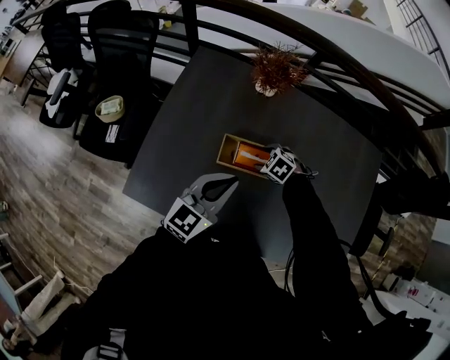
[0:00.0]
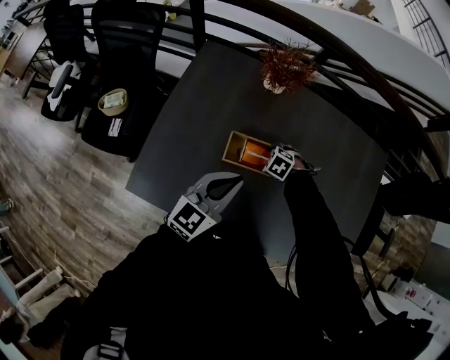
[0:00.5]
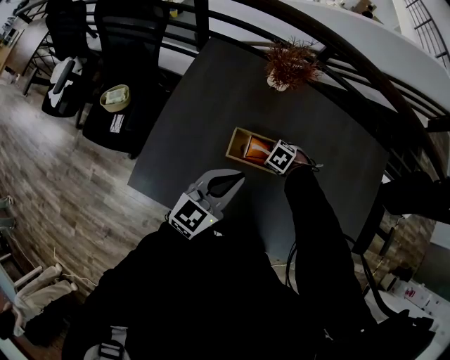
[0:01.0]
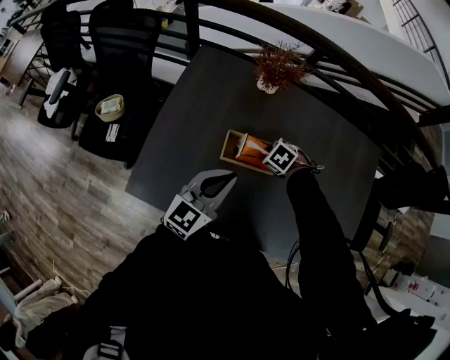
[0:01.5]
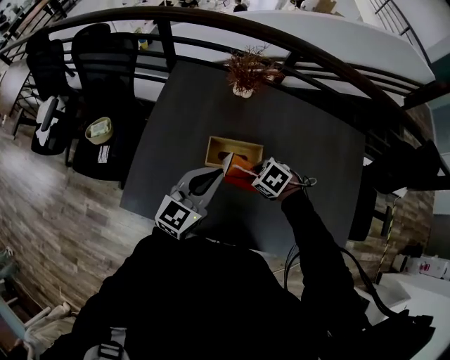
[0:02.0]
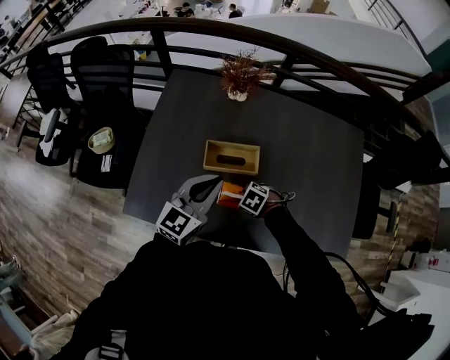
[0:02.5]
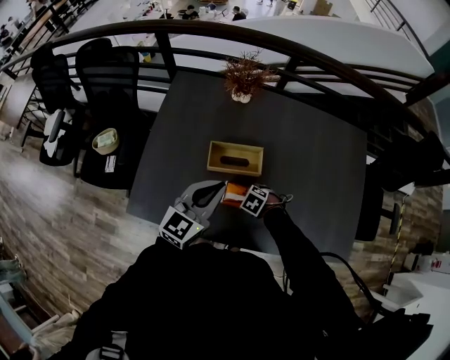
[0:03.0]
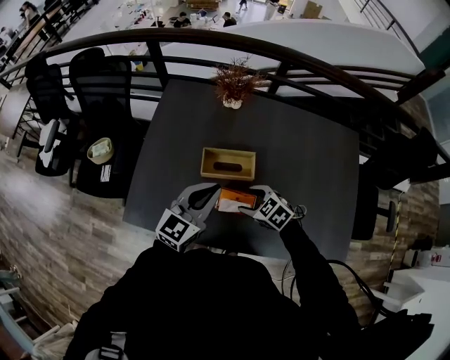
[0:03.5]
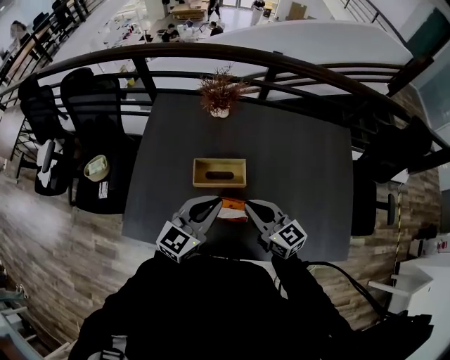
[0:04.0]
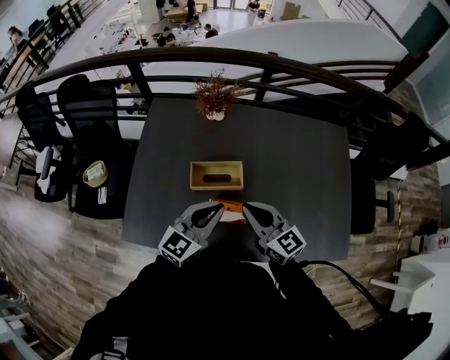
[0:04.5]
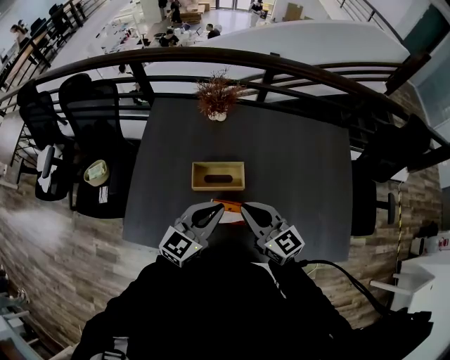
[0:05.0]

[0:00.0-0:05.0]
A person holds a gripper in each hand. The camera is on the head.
0:00.0 to 0:02.5: The right gripper moves some 10 cm upward and comes back, and closes.
0:02.5 to 0:05.0: The left gripper changes place by approximately 5 cm; the right gripper moves upward, roughly 25 cm, points its fingers about 70 degrees further upward, and closes.

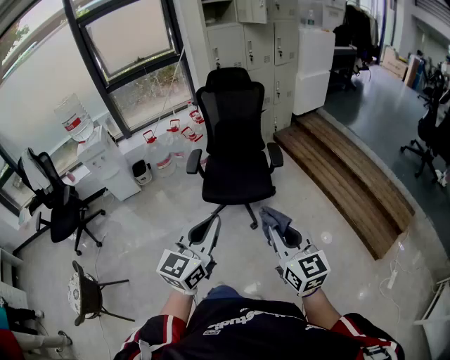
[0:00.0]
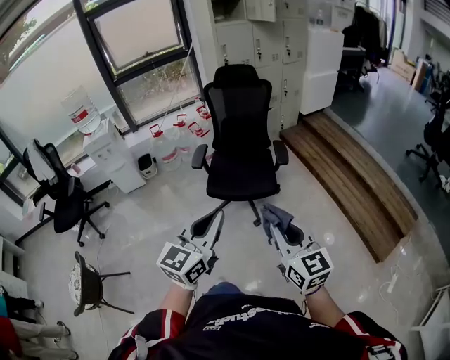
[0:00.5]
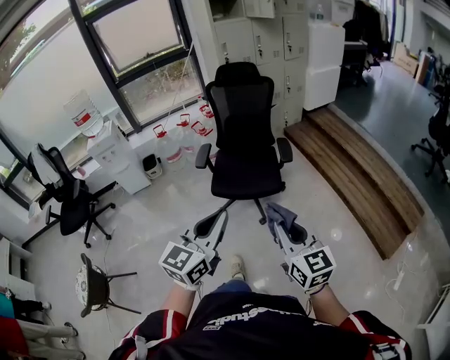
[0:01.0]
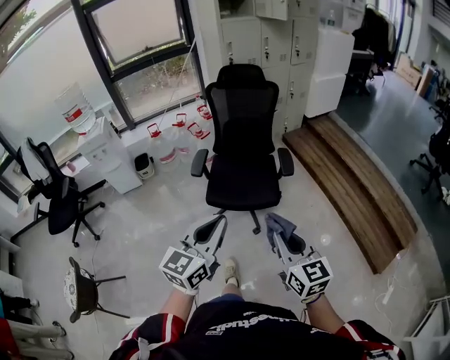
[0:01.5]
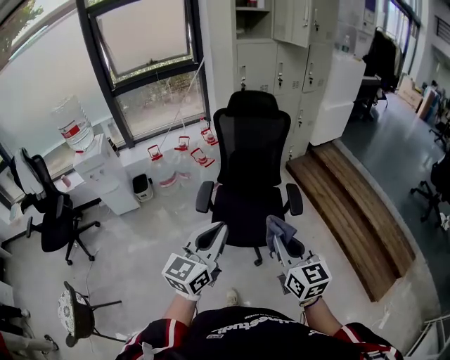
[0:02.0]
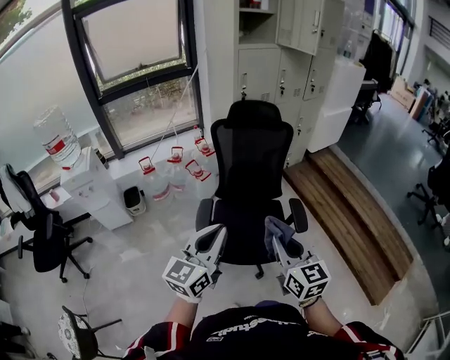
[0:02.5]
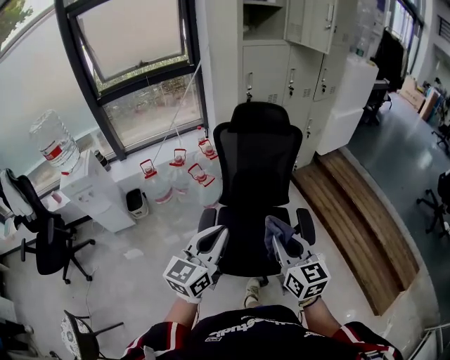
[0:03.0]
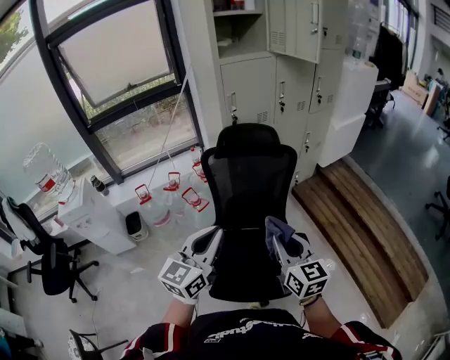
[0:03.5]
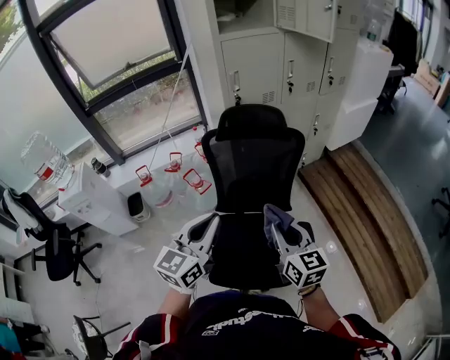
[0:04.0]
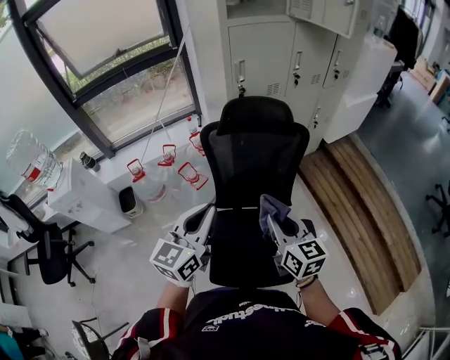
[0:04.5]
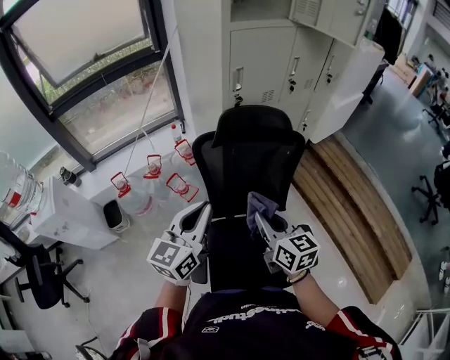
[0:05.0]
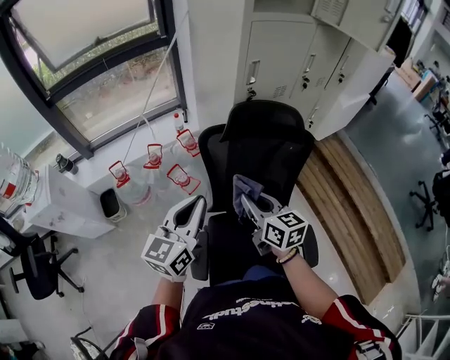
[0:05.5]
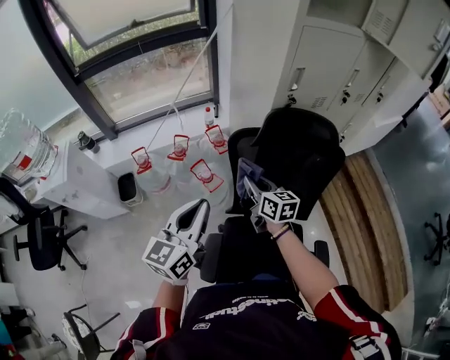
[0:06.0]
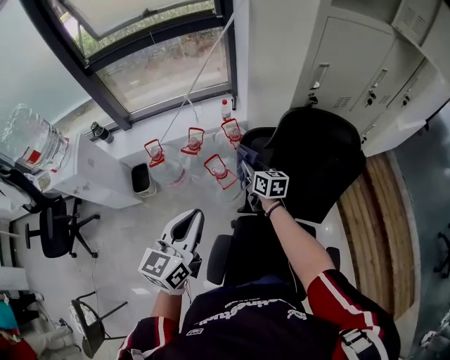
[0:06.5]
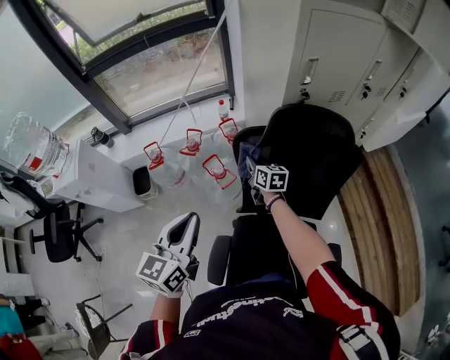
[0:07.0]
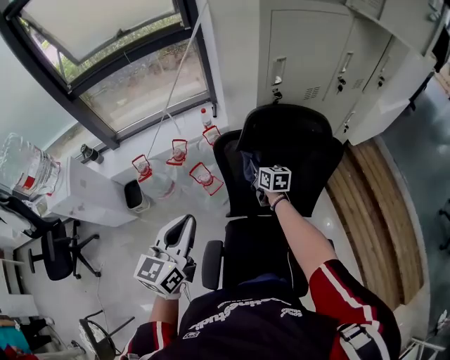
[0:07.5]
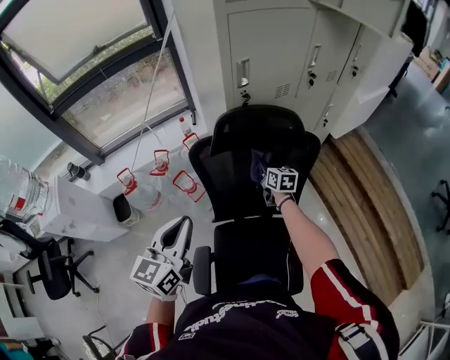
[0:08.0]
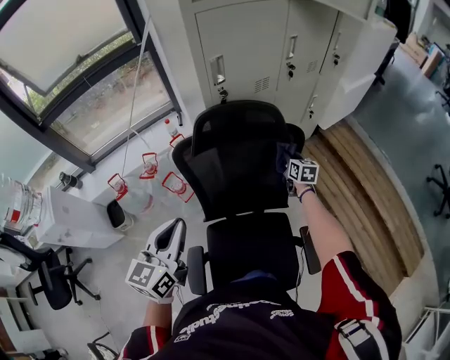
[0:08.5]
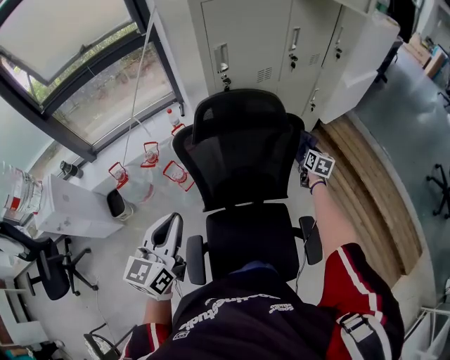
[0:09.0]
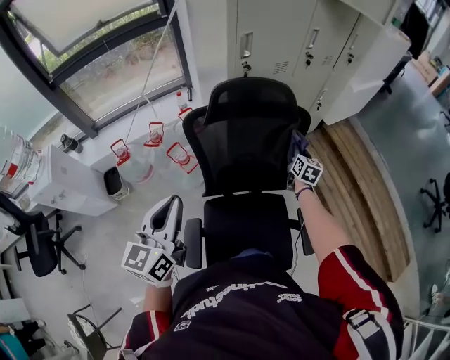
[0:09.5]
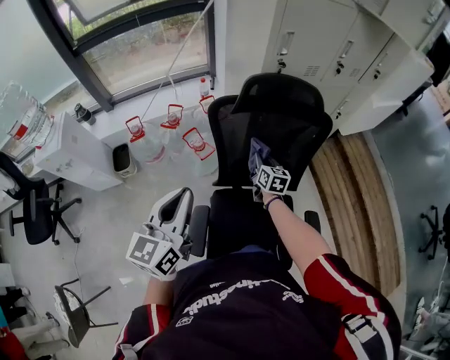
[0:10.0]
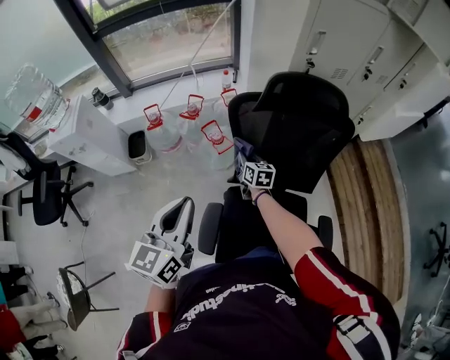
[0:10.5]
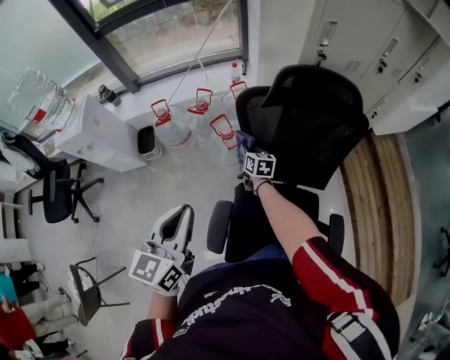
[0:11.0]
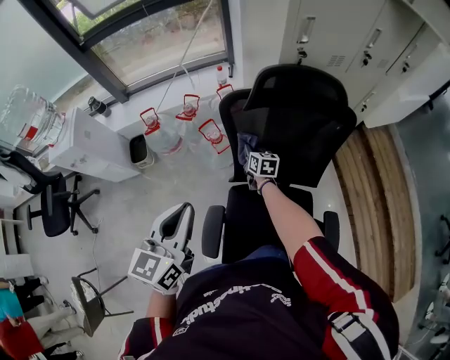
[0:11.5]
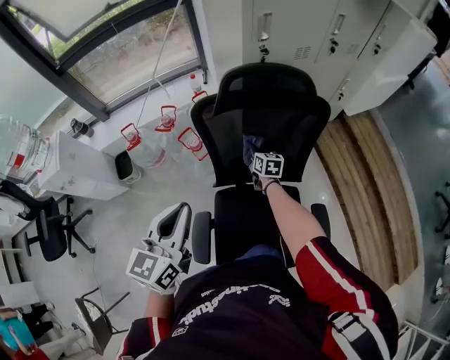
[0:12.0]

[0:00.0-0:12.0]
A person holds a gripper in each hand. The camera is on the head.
0:00.0 to 0:02.0: The two grippers go some 30 cm forward.
0:02.0 to 0:04.0: The two grippers travel together, forward, roughly 50 cm.
0:04.0 to 0:06.0: Both grippers move forward and to the left, some 35 cm.
0:06.0 to 0:08.0: The left gripper heads to the right, covering some 10 cm. The right gripper shifts approximately 25 cm to the right, downward and forward.
0:08.0 to 0:10.0: The grippers both shift backward by approximately 15 cm. The right gripper goes to the right and returns, approximately 25 cm each way.
0:10.0 to 0:12.0: The left gripper moves approximately 5 cm. The right gripper heads downward and forward, covering about 10 cm, and travels to the left and back again, some 15 cm each way.

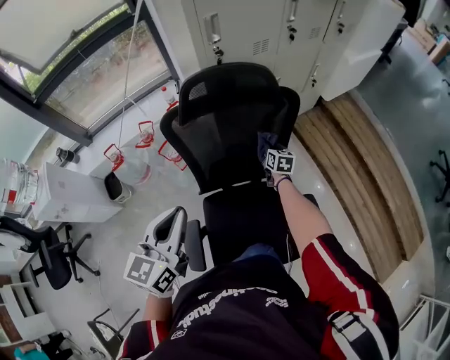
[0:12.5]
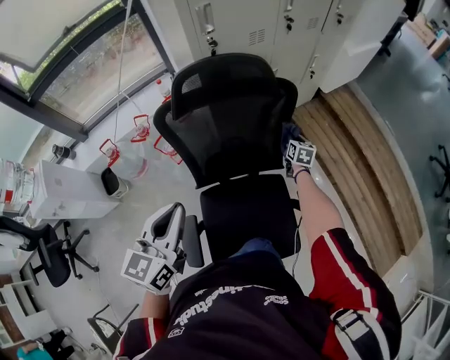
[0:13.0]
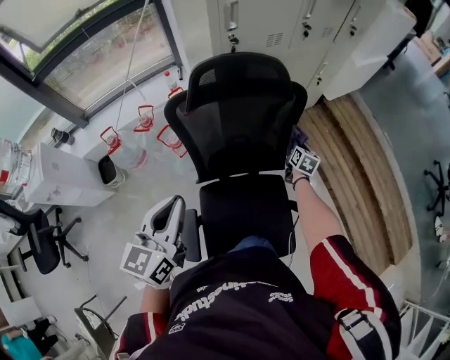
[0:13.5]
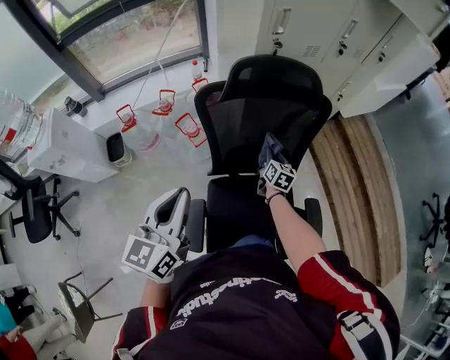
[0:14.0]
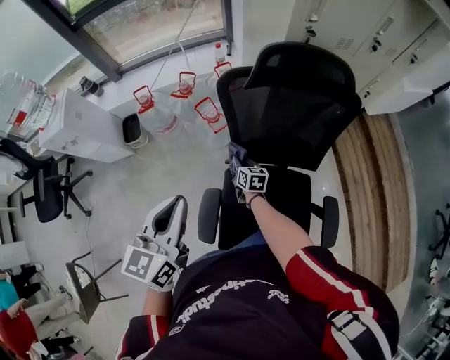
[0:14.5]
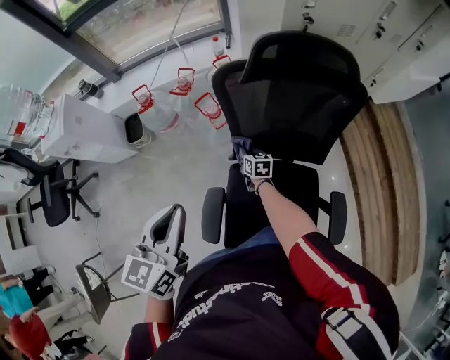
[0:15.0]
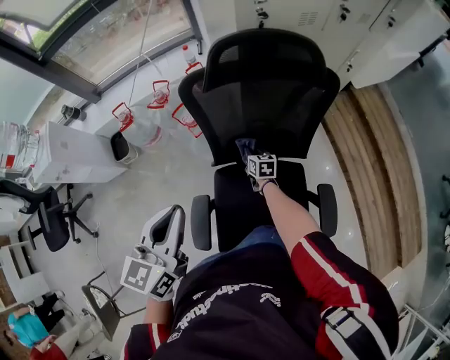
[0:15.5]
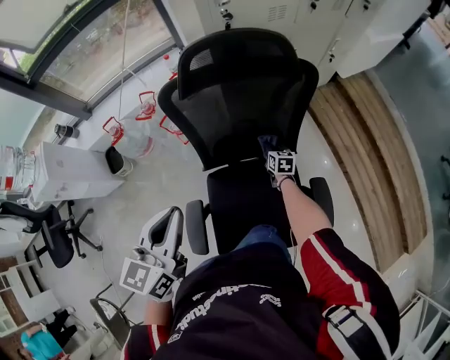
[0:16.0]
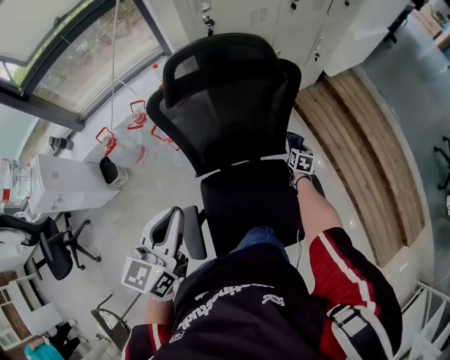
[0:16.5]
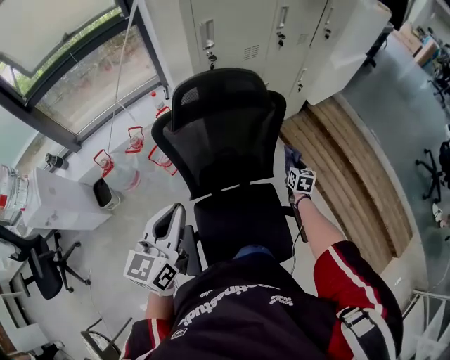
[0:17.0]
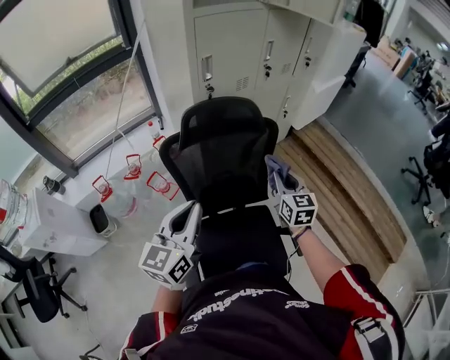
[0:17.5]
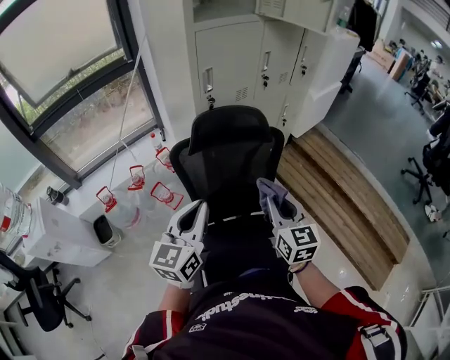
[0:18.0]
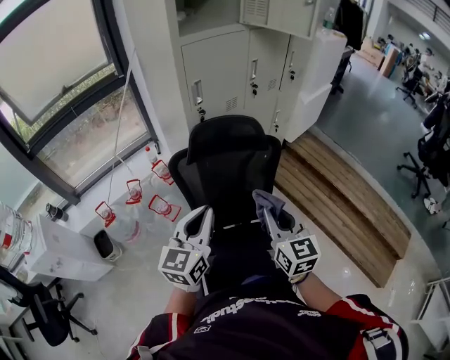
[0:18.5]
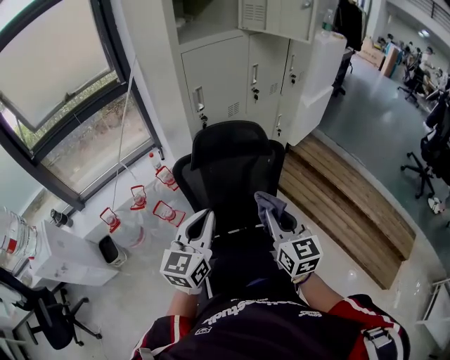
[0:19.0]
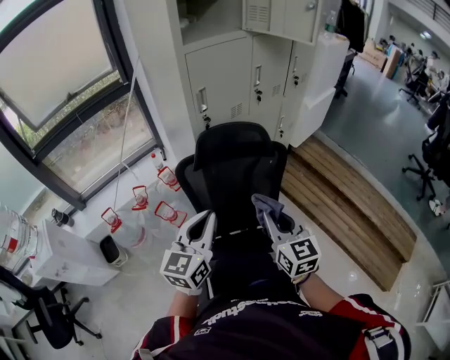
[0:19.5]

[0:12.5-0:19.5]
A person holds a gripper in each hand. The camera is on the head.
0:12.5 to 0:14.5: The left gripper ends up approximately 15 cm from where it was; the right gripper moves some 35 cm, and changes its angle by some 20 degrees.
0:14.5 to 0:16.0: The left gripper is displaced to the right by about 10 cm, while the right gripper shifts about 30 cm to the right, and turns by about 20 degrees.
0:16.0 to 0:17.5: The right gripper is displaced upward by approximately 40 cm, and turns by approximately 30 degrees. Meanwhile the left gripper moves upward, roughly 10 cm.
0:17.5 to 0:19.5: The right gripper goes about 15 cm backward, upward and to the left.

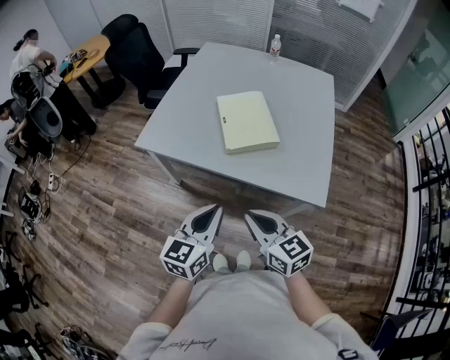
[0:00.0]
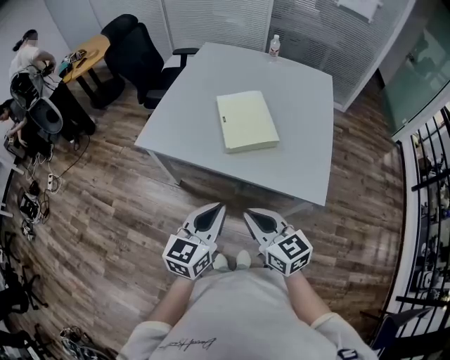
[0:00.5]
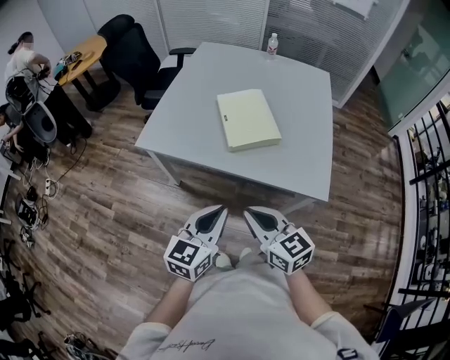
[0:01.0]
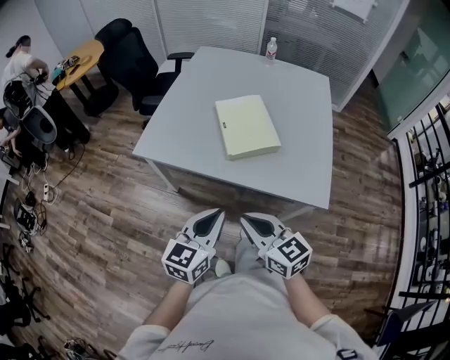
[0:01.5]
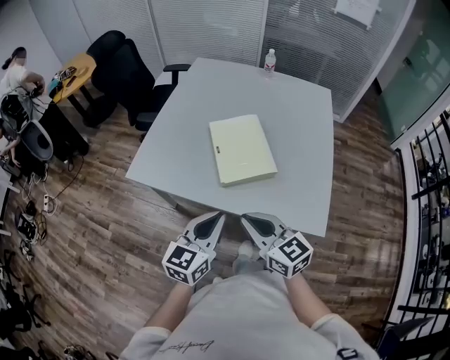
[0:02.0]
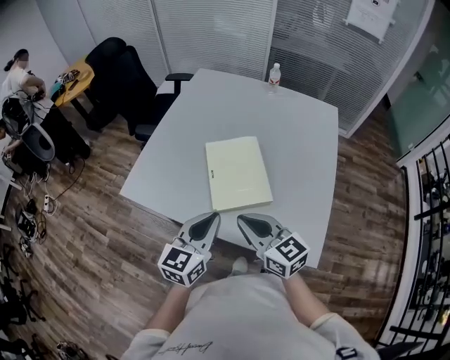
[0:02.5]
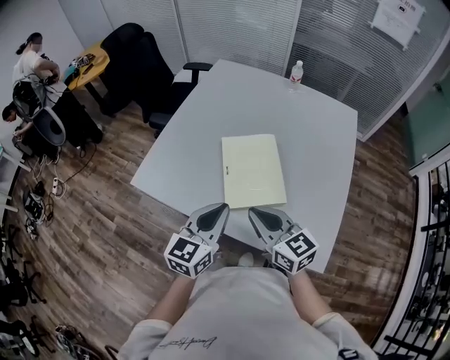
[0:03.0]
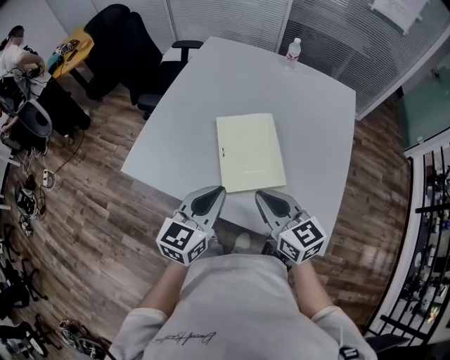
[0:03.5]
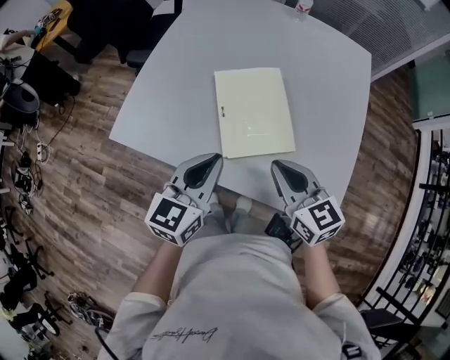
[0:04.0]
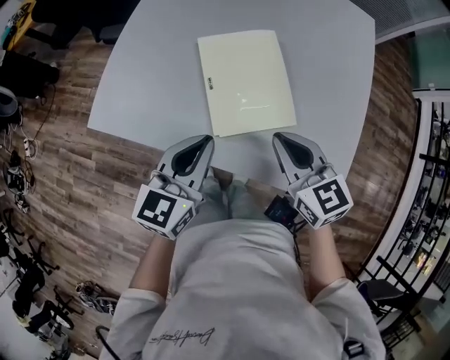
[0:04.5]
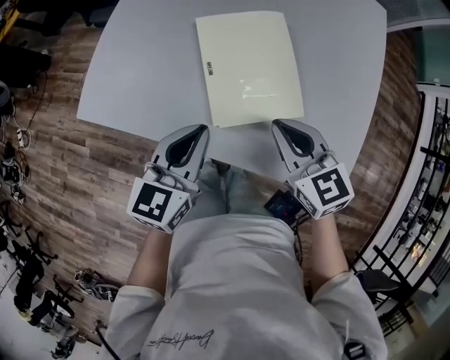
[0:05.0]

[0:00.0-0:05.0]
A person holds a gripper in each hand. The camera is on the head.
0:00.0 to 0:02.5: Both grippers travel together forward, some 20 cm.
0:02.5 to 0:05.0: Both grippers travel together downward and forward, about 10 cm.
